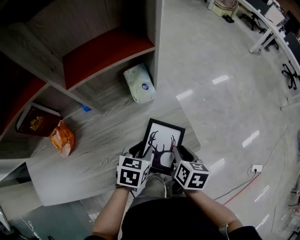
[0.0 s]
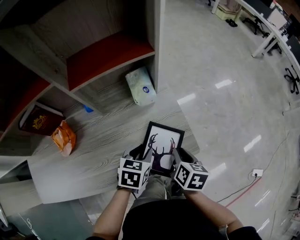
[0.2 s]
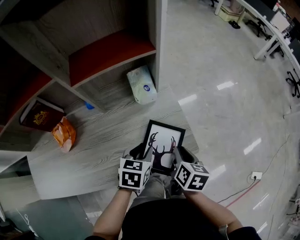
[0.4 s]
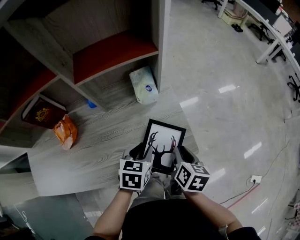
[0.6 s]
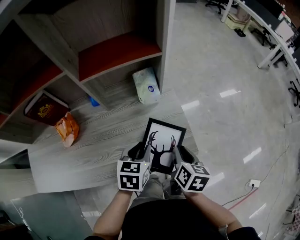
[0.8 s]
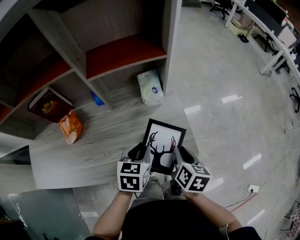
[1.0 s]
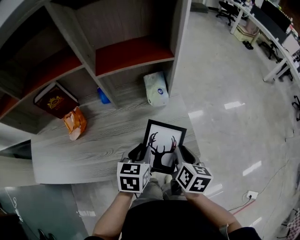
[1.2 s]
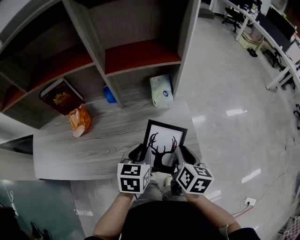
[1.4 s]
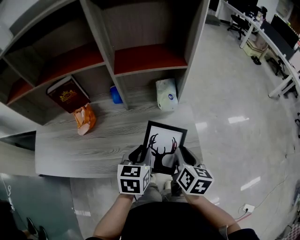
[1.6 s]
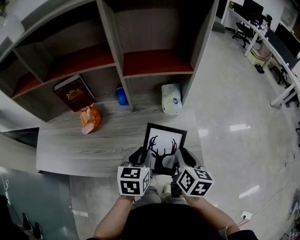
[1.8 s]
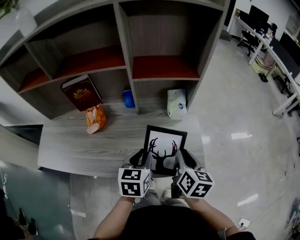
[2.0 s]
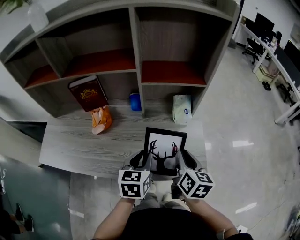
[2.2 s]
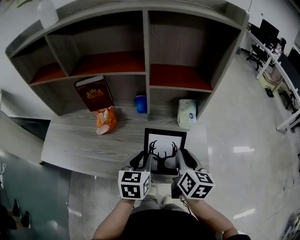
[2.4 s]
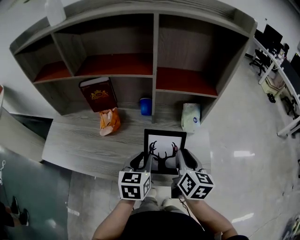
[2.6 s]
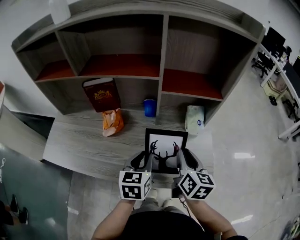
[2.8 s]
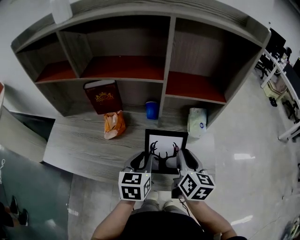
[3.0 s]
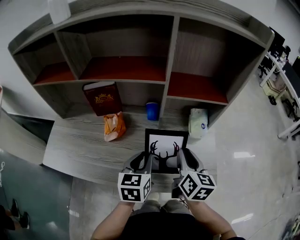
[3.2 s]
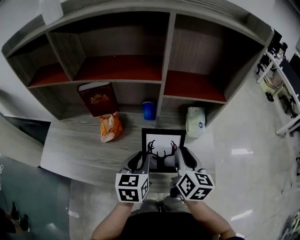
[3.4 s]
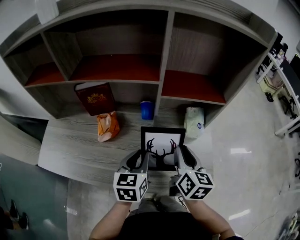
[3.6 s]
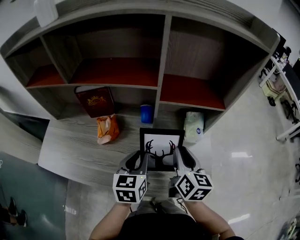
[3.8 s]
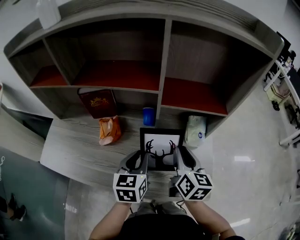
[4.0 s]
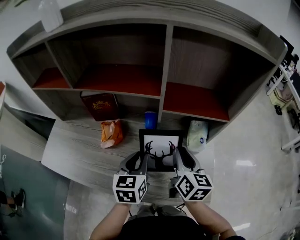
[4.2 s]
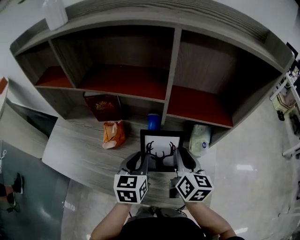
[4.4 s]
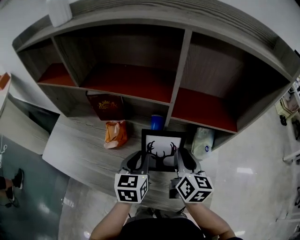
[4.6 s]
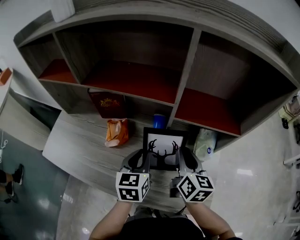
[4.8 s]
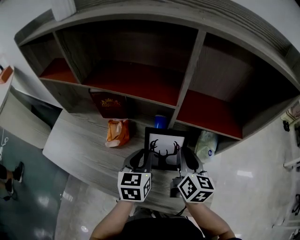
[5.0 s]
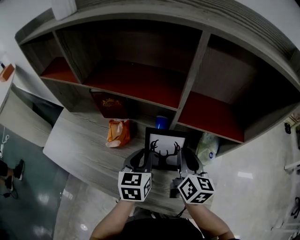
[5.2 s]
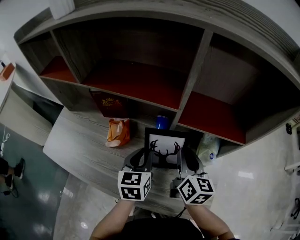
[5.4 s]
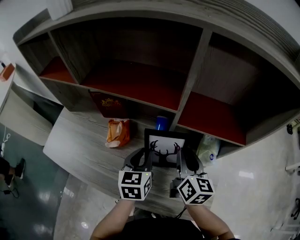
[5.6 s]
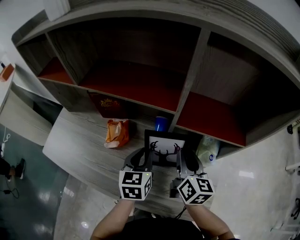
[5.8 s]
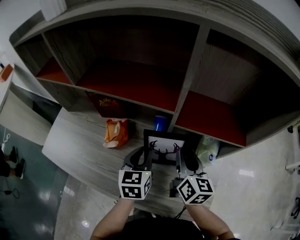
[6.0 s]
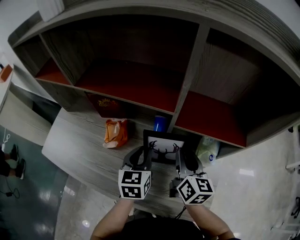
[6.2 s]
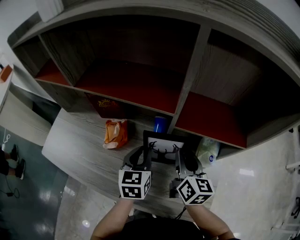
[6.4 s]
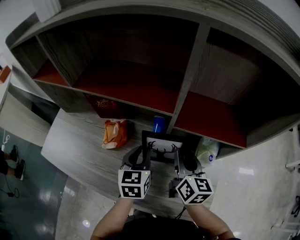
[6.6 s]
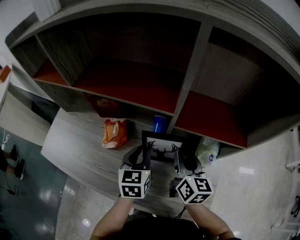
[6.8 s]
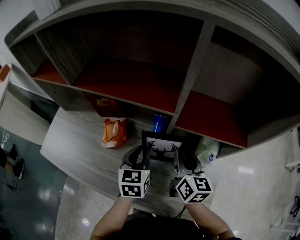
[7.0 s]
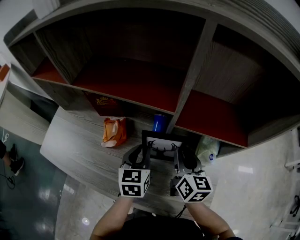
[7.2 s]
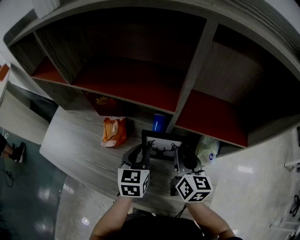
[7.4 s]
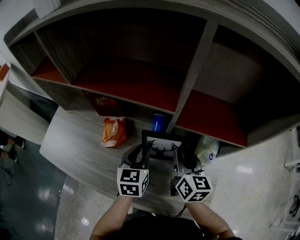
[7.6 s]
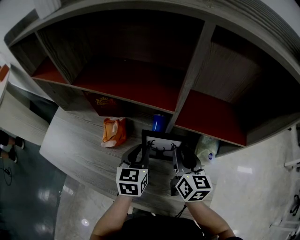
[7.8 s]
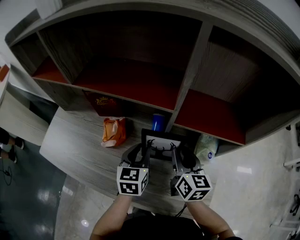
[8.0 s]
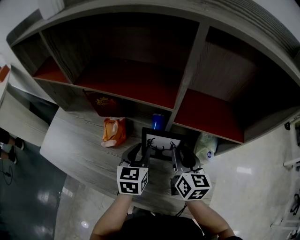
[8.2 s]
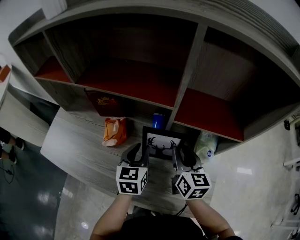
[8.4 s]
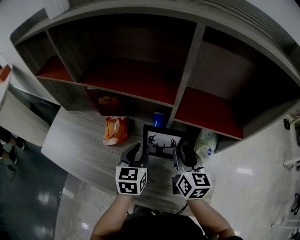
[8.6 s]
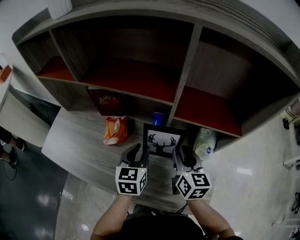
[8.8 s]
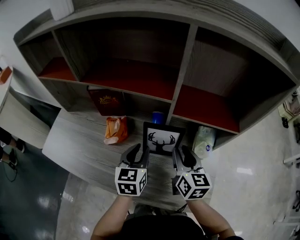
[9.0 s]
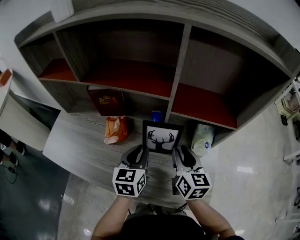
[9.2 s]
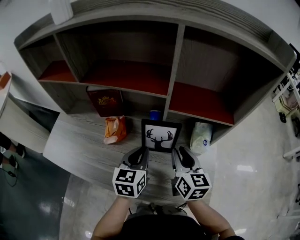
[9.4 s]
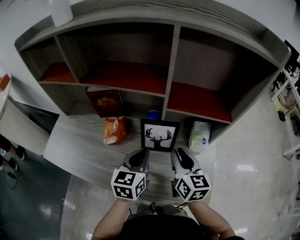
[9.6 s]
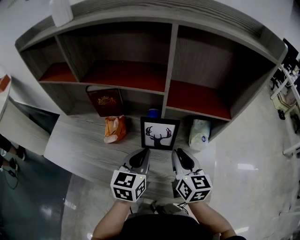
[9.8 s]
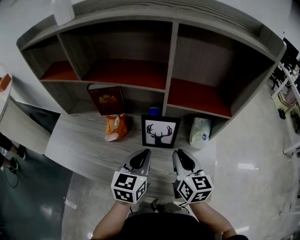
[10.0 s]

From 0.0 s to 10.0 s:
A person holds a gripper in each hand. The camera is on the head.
From 0.0 s to 1.4 s: The two grippers go approximately 5 cm upward. The left gripper rotates roughly 30 degrees.
From 1.4 s to 2.8 s: The right gripper moves to the left, upward and forward, approximately 15 cm, and rotates approximately 20 degrees, while the left gripper shifts approximately 10 cm to the left.
From 2.8 s to 4.2 s: Both grippers travel together forward, roughly 10 cm.
From 4.2 s to 5.8 s: Both grippers travel together forward, about 5 cm.
From 5.8 s to 8.6 s: There are only small adjustments of the grippers.
From 8.6 s to 10.0 s: The left gripper shifts some 10 cm backward and upward, and closes up. The right gripper moves backward, about 10 cm.

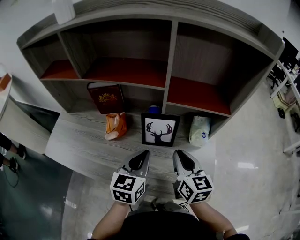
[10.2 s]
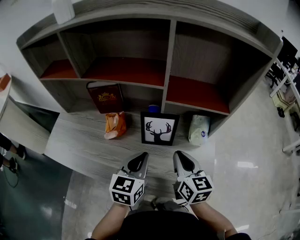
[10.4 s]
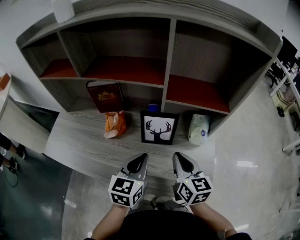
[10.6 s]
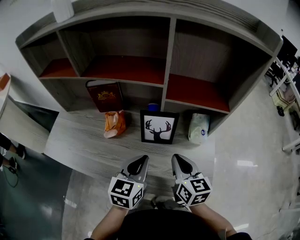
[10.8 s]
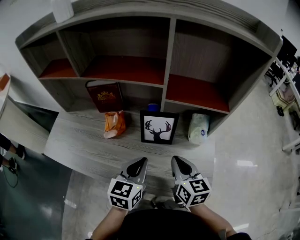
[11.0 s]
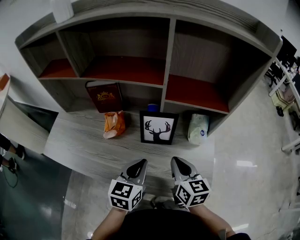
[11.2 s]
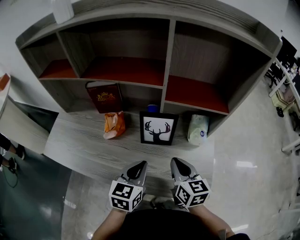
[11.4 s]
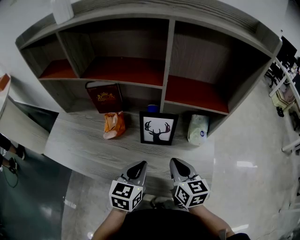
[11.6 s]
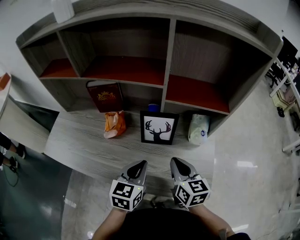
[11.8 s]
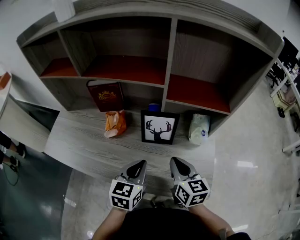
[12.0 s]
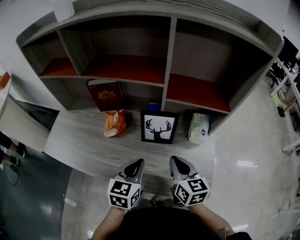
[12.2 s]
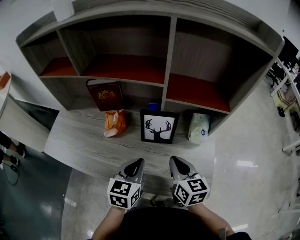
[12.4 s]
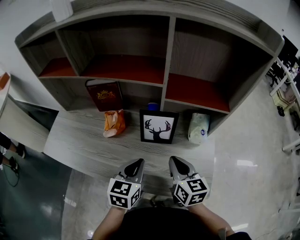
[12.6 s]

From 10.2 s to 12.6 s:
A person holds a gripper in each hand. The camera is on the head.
From 10.2 s to 11.4 s: The left gripper ends up some 5 cm from where it was.
From 11.4 s to 12.6 s: The grippers stay close to where they were, moving slightly.

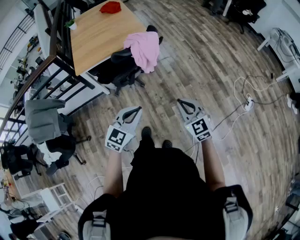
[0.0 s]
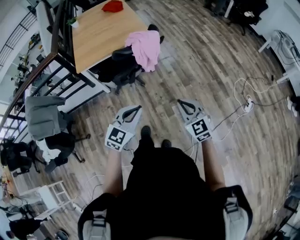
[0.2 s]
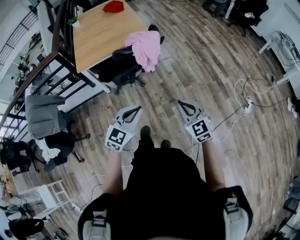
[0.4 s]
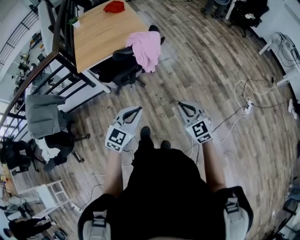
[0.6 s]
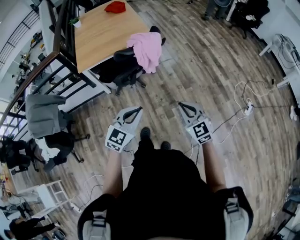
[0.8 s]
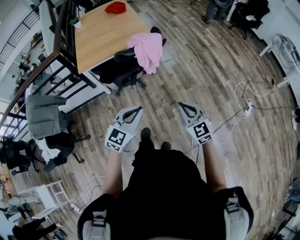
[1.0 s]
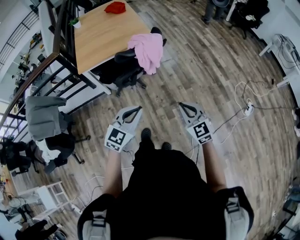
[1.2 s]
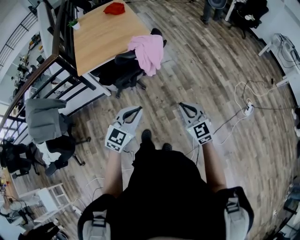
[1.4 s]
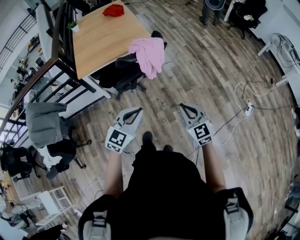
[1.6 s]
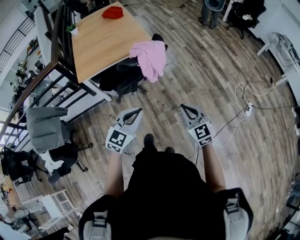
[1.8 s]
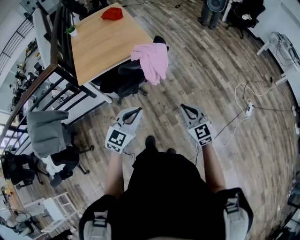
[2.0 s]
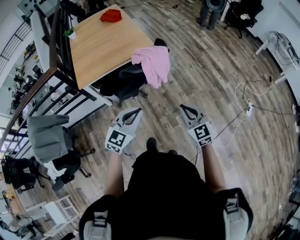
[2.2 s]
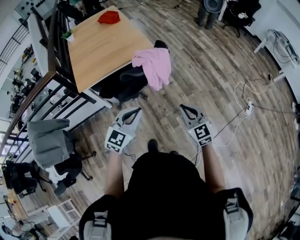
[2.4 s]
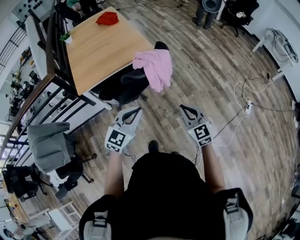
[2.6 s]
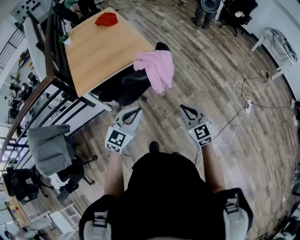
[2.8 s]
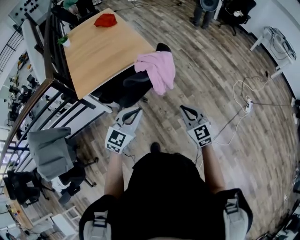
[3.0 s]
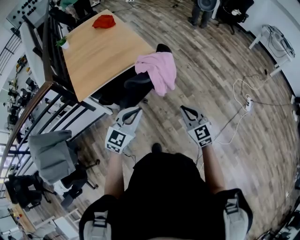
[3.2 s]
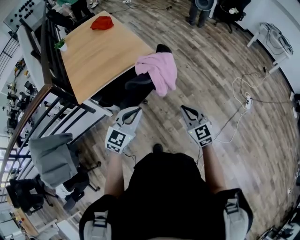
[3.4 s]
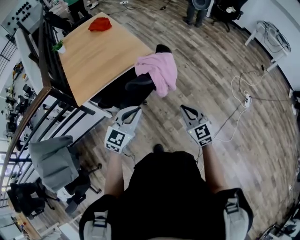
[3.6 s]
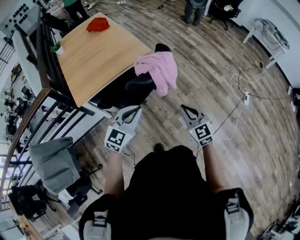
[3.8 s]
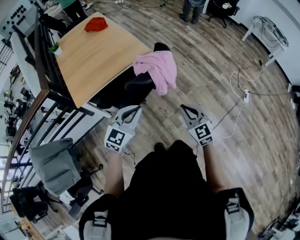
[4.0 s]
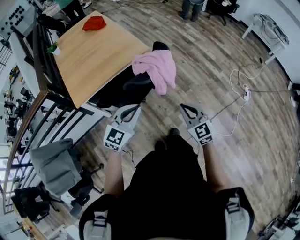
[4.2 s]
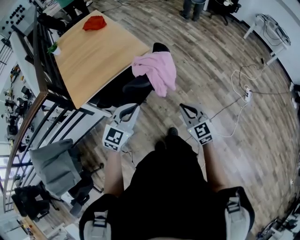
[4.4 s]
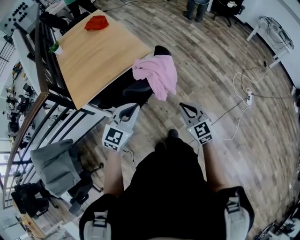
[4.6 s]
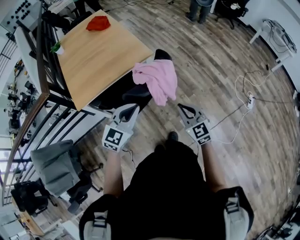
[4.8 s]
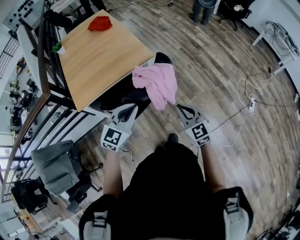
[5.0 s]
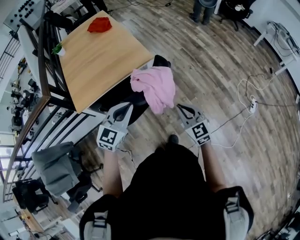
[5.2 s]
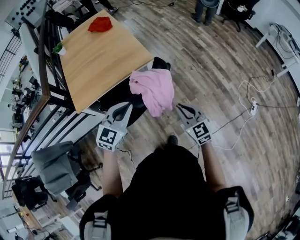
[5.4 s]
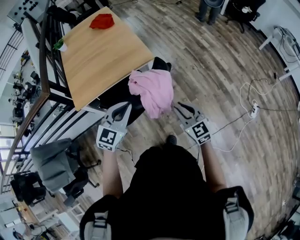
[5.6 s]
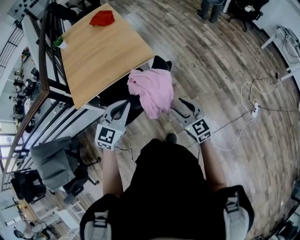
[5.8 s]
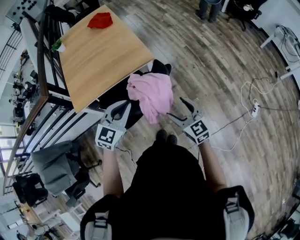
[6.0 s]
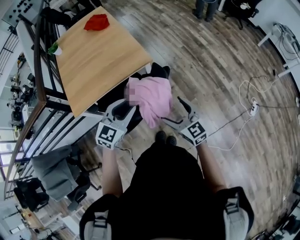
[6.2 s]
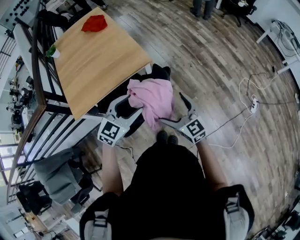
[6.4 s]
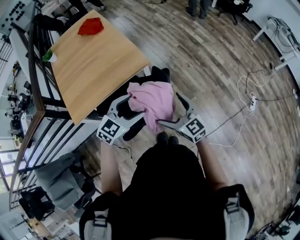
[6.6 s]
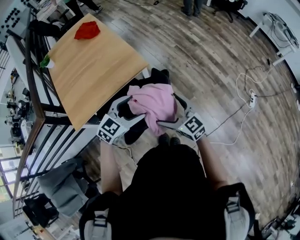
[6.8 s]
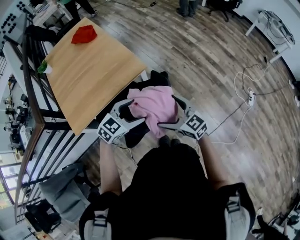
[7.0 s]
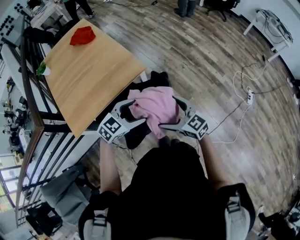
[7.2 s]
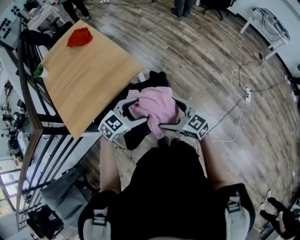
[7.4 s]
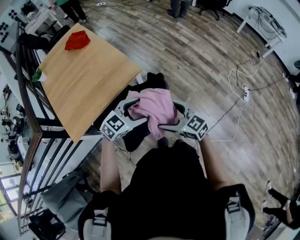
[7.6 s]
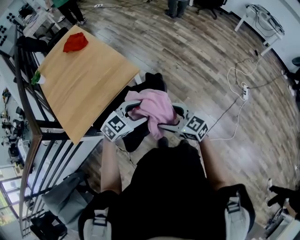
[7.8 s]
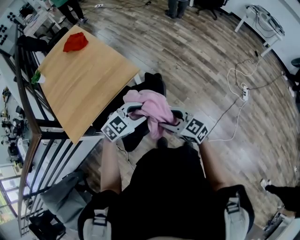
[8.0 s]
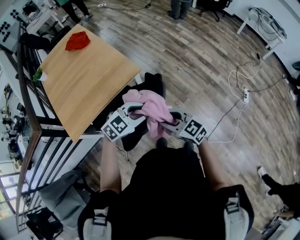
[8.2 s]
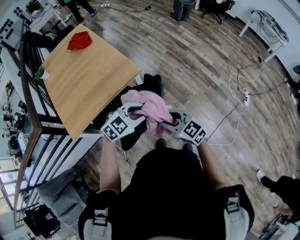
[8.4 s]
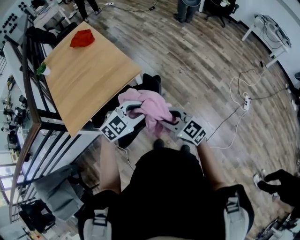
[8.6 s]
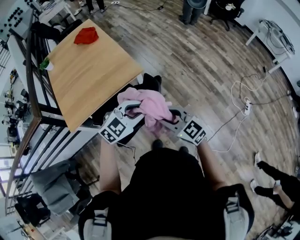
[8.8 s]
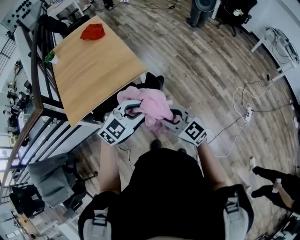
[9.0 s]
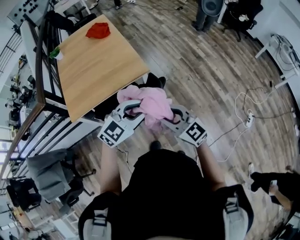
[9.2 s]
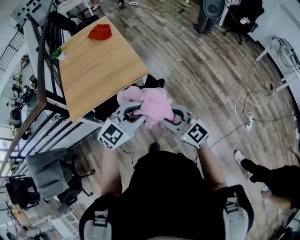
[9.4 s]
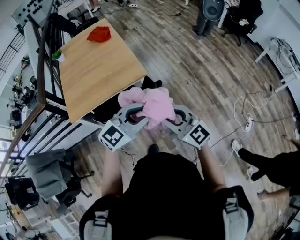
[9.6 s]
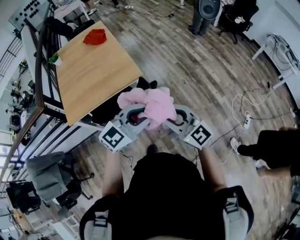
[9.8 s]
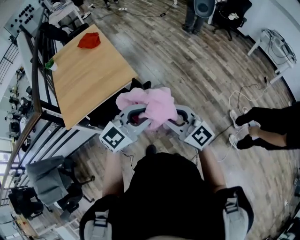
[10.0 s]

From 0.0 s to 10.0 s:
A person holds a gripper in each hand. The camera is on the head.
From 0.0 s to 1.4 s: The grippers stay close to where they were, moving slightly.
From 1.4 s to 2.8 s: The grippers both shift forward and to the left by approximately 15 cm.
From 2.8 s to 4.2 s: The left gripper is displaced to the left by some 5 cm.
From 4.2 s to 5.8 s: Both grippers travel together forward, roughly 15 cm. The right gripper opens.
From 5.8 s to 7.2 s: The left gripper heads forward and downward, covering roughly 10 cm, rotates approximately 40 degrees, and opens. Meanwhile the right gripper shifts roughly 10 cm to the left and forward, and opens up.
From 7.2 s to 8.6 s: The right gripper changes place by roughly 5 cm, and closes. The left gripper shifts roughly 10 cm to the right, and closes its fingers.
From 8.6 s to 10.0 s: The right gripper shifts some 15 cm to the right and upward. Meanwhile the left gripper shifts roughly 20 cm to the right, upward and backward, and changes its angle by roughly 20 degrees.

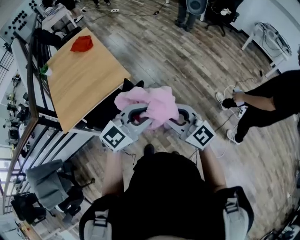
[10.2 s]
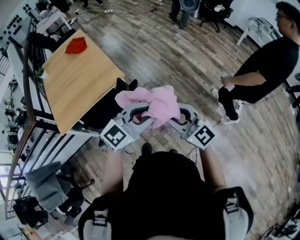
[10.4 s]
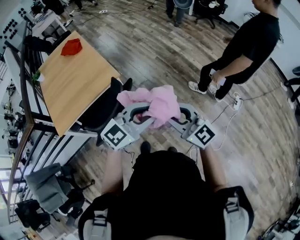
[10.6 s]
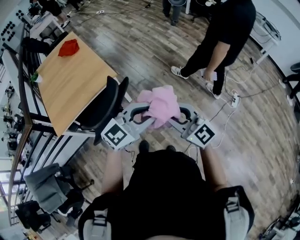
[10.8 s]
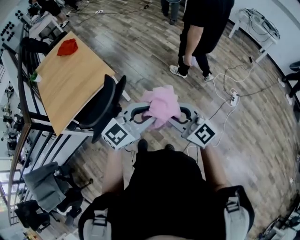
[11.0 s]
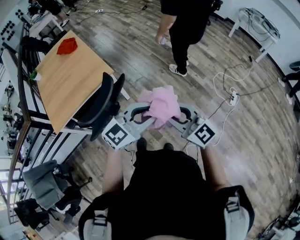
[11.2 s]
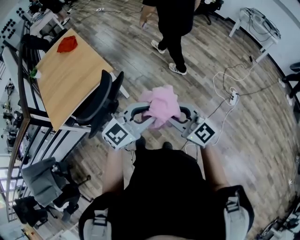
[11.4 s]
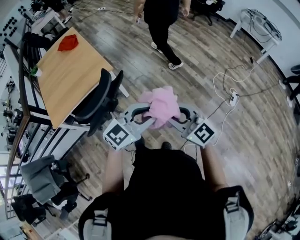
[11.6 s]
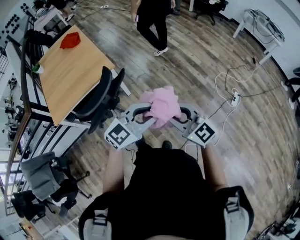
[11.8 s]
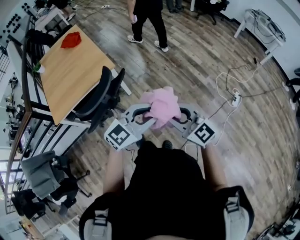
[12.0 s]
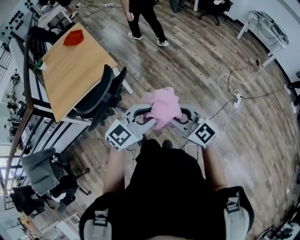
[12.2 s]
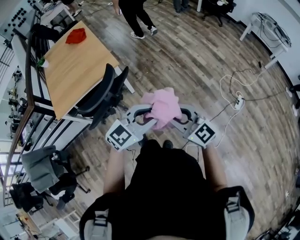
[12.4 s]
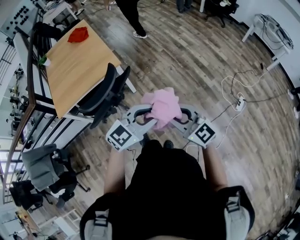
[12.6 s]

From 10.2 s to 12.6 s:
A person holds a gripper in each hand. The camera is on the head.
From 10.2 s to 11.4 s: The two grippers go approximately 15 cm to the right and backward.
From 11.4 s to 12.6 s: The grippers make only small movements.
